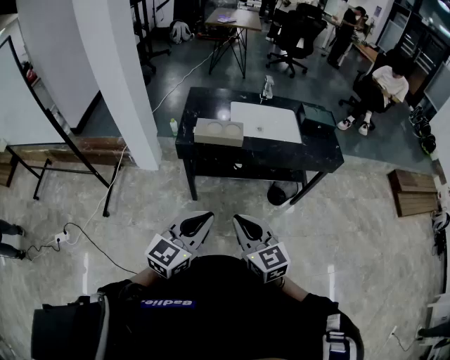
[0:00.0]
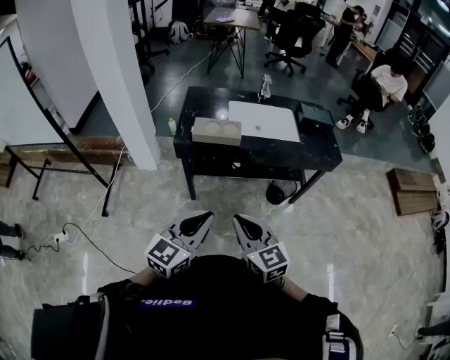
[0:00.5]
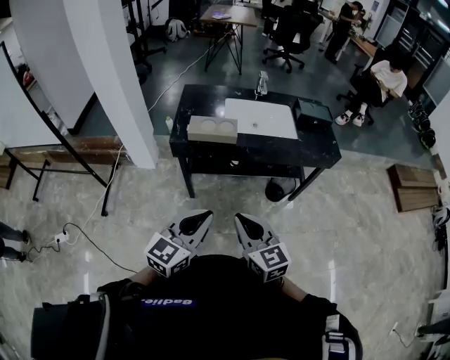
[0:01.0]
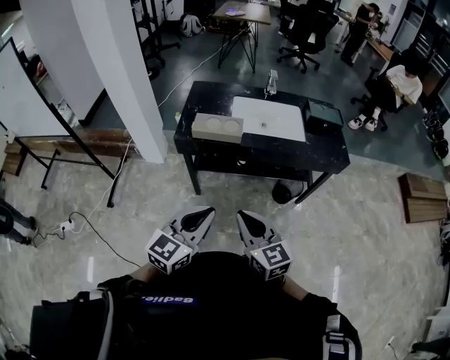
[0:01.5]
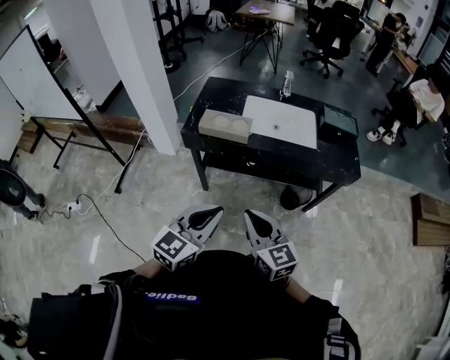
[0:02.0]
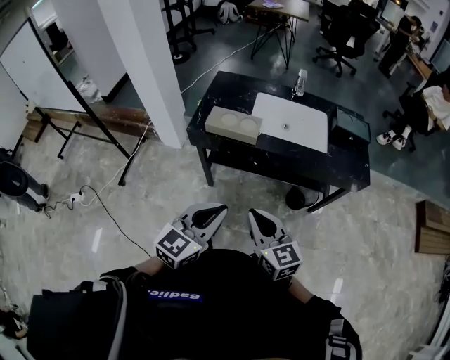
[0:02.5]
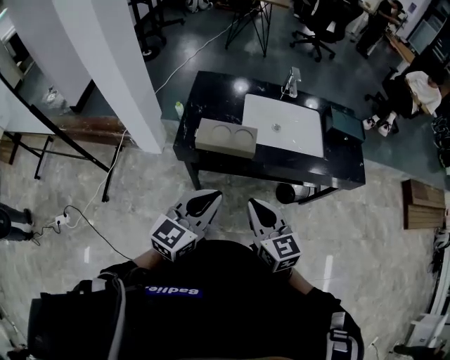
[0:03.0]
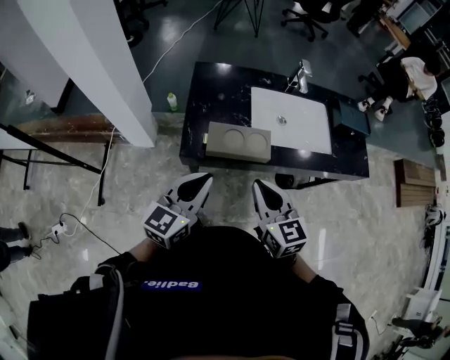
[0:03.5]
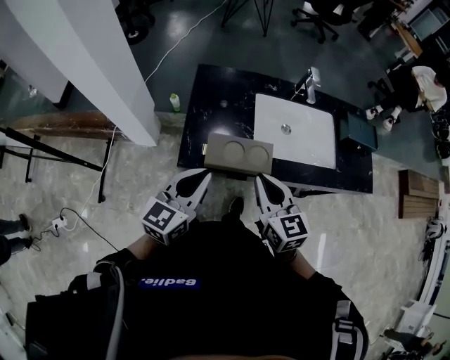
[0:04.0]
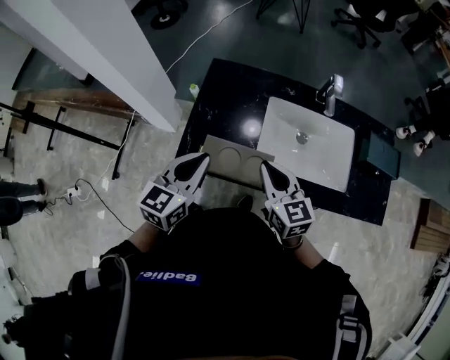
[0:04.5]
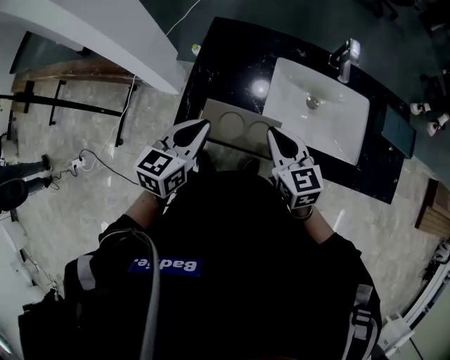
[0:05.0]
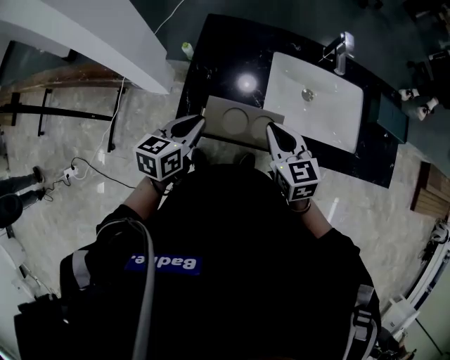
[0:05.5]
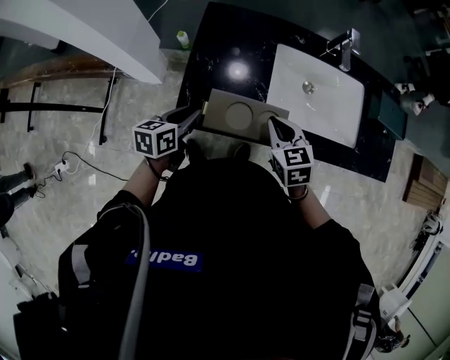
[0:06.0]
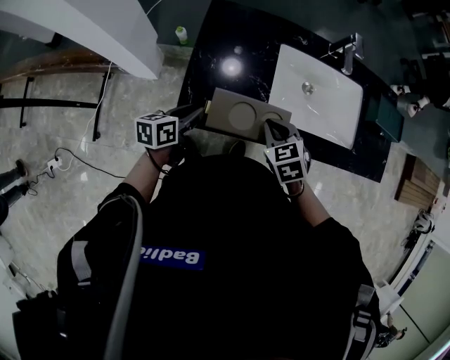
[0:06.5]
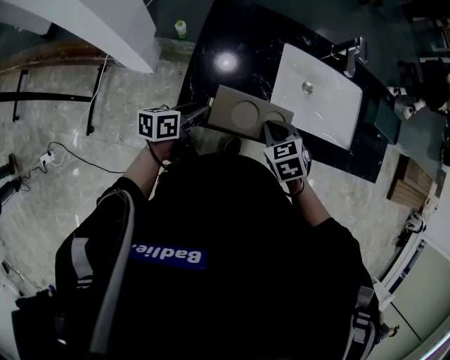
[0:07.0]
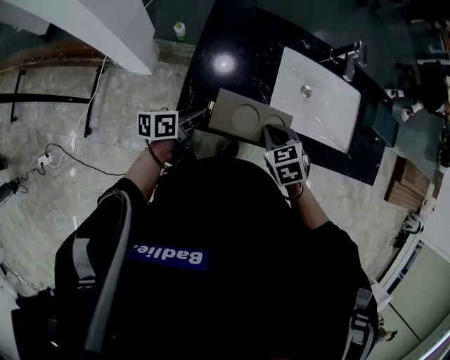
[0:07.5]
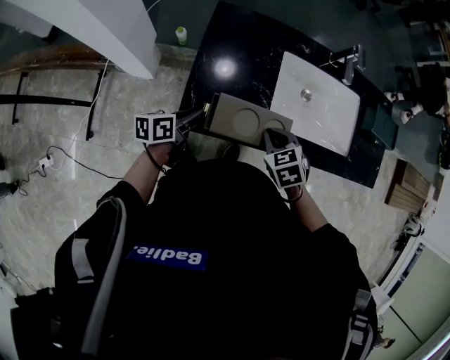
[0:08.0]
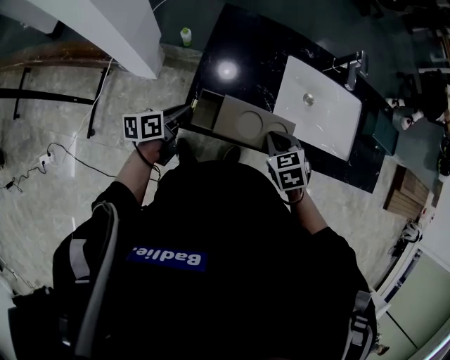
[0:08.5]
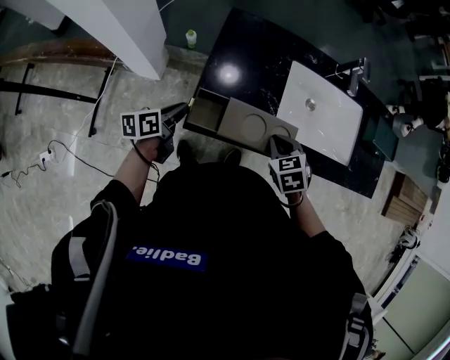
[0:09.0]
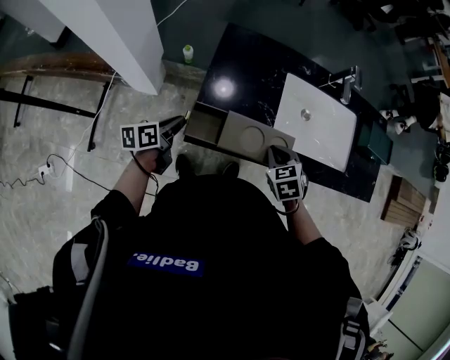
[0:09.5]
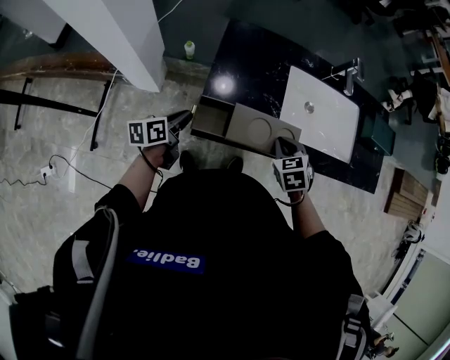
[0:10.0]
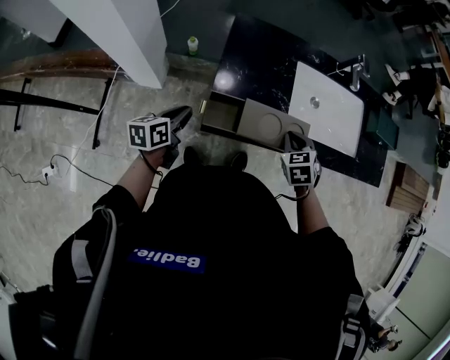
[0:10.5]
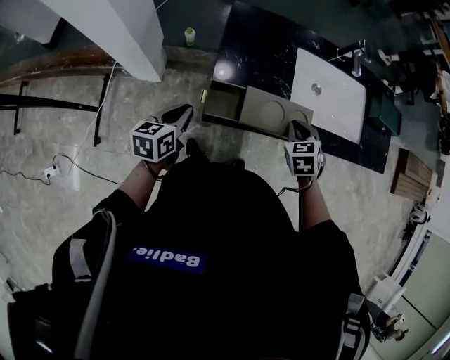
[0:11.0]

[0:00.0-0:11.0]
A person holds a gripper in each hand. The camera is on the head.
0:00.0 to 0:02.0: The right gripper goes some 10 cm to the right and forward; the left gripper heads to the right, covering roughly 10 cm.
0:02.0 to 0:03.5: The grippers both shift forward and to the left by about 35 cm.
0:03.5 to 0:05.5: Both grippers travel together forward and downward, some 20 cm. The left gripper swivels some 30 degrees.
0:05.5 to 0:07.5: The grippers both shift downward by some 10 cm. The left gripper turns by roughly 30 degrees; the right gripper tilts its fingers roughly 30 degrees downward.
0:07.5 to 0:09.0: The left gripper heads to the left, covering some 10 cm.
0:09.0 to 0:11.0: The left gripper shifts approximately 5 cm backward, and rotates approximately 20 degrees.

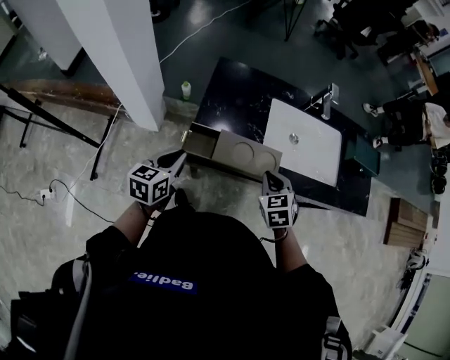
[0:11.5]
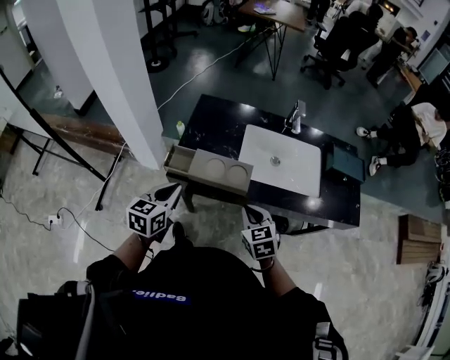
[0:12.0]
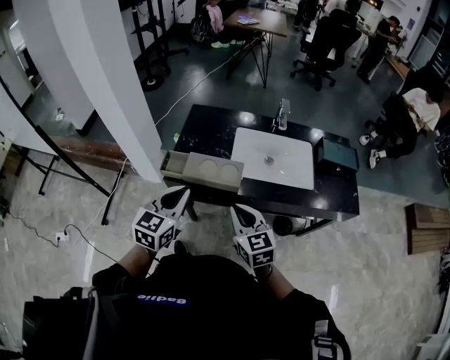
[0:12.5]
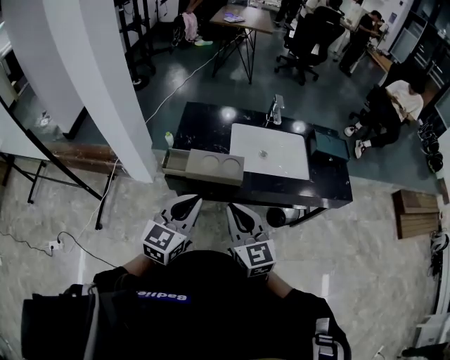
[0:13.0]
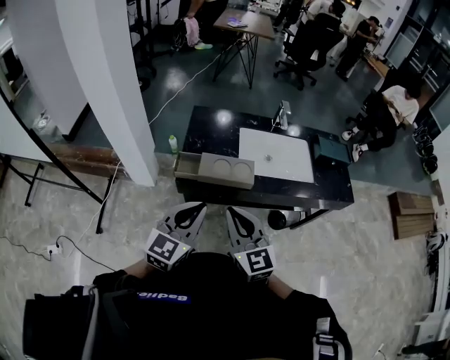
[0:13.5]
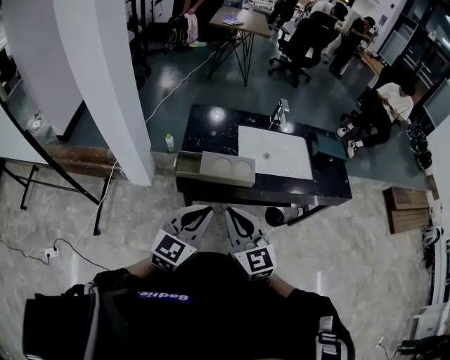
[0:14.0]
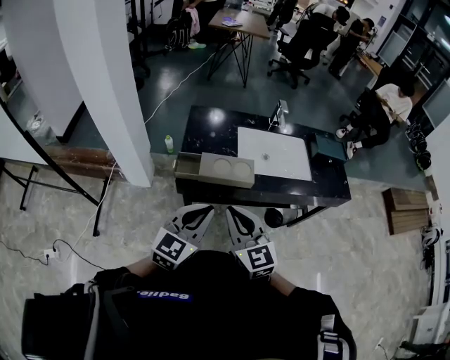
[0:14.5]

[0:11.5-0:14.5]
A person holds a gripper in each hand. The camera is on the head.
0:11.5 to 0:13.0: The right gripper goes about 25 cm backward and upward, and tips its fingers upward by roughly 40 degrees; the left gripper goes approximately 30 cm to the right, upward and backward, and rotates some 30 degrees.
0:13.0 to 0:14.5: The left gripper moves roughly 5 cm. The right gripper goes some 10 cm to the left.

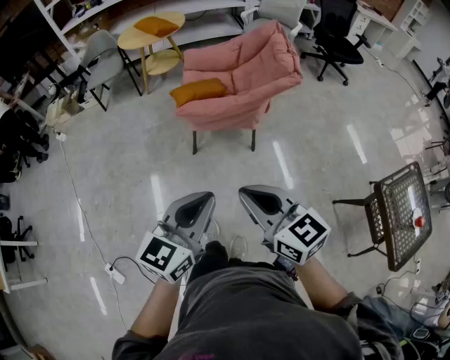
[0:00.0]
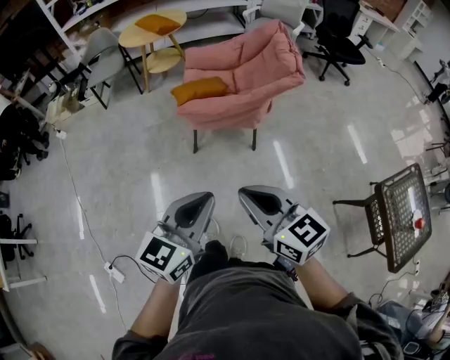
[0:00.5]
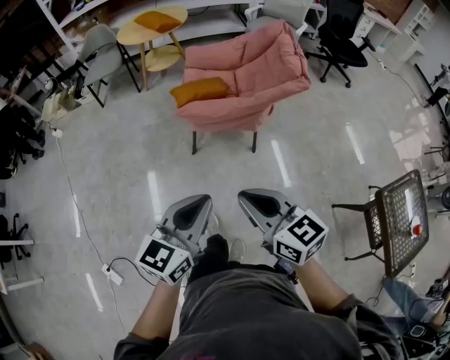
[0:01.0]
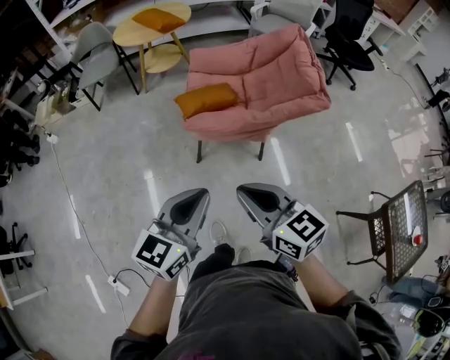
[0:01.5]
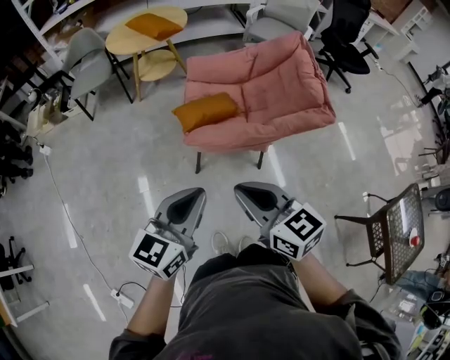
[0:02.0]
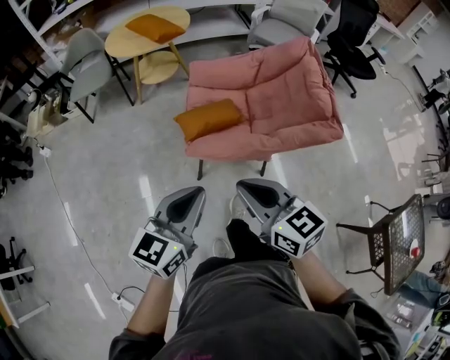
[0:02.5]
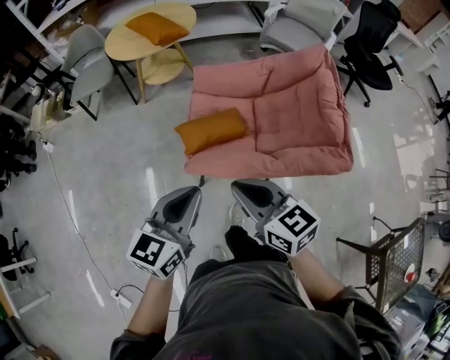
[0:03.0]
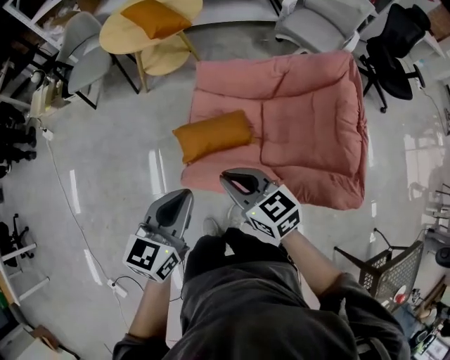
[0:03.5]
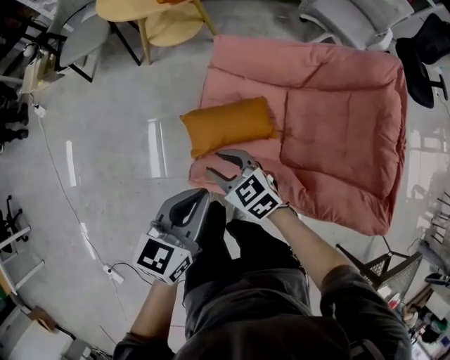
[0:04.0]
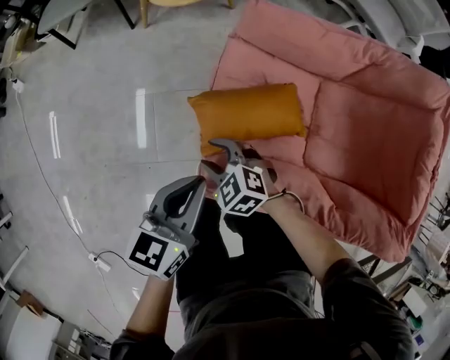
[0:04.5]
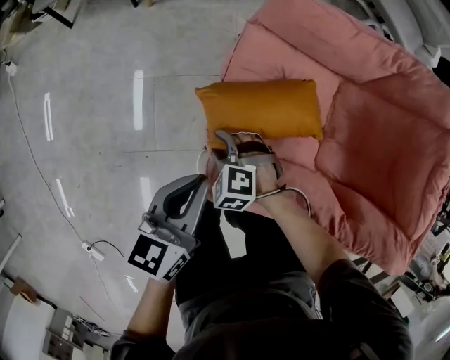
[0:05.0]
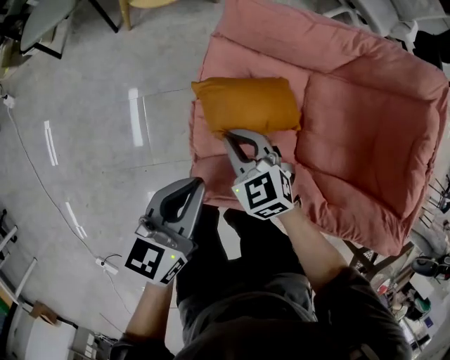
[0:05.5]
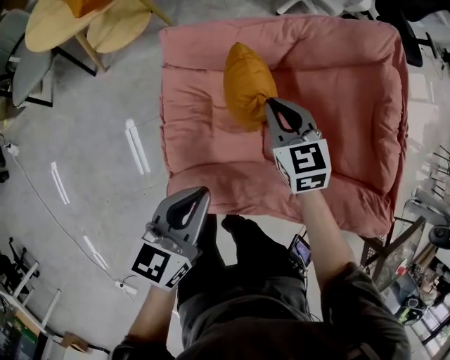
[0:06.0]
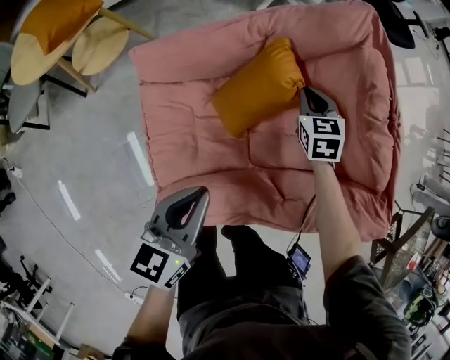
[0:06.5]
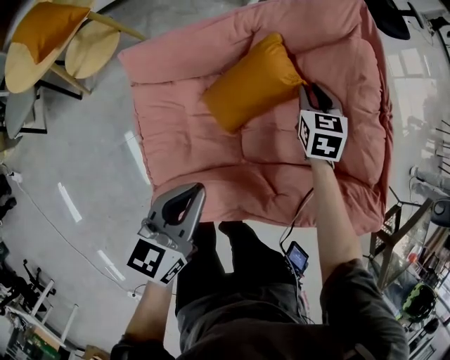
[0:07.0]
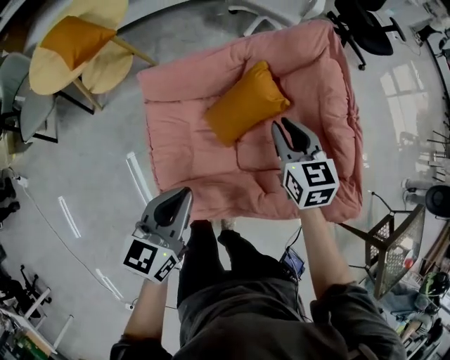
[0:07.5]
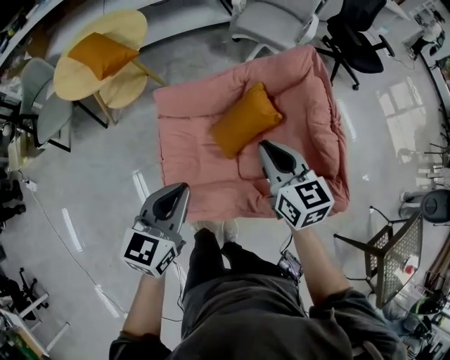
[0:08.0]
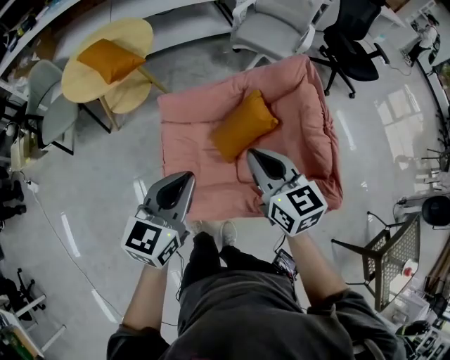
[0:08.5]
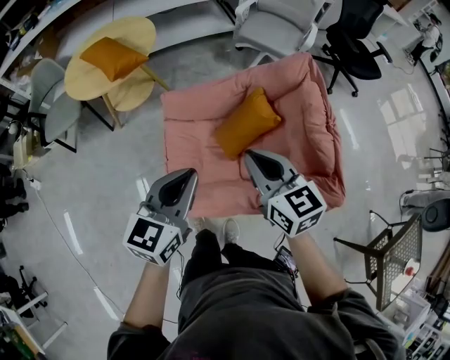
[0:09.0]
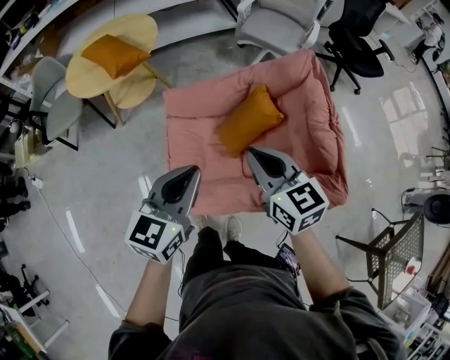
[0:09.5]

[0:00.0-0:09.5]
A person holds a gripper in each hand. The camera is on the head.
0:00.0 to 0:02.0: The grippers both shift forward and to the left by some 35 cm.
0:02.0 to 0:04.0: The grippers both shift forward and downward by approximately 50 cm. The left gripper rotates some 20 degrees. Meanwhile the right gripper turns by about 30 degrees, and opens.
0:04.0 to 0:05.5: Both grippers move downward and forward, roughly 15 cm. The right gripper closes its fingers.
0:05.5 to 0:07.5: The left gripper shifts by some 25 cm. Meanwhile the right gripper swings up and down, approximately 25 cm each way, with 2 reversals, and turns by about 50 degrees.
0:07.5 to 0:09.5: The right gripper goes approximately 25 cm upward, backward and to the left, and turns by about 20 degrees; the left gripper goes approximately 15 cm upward.

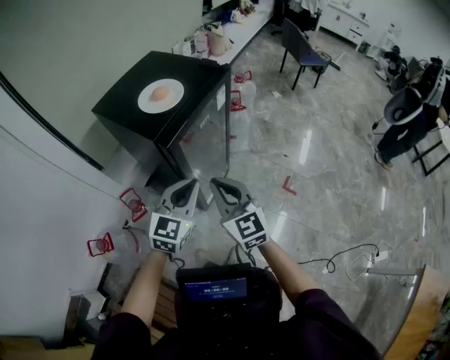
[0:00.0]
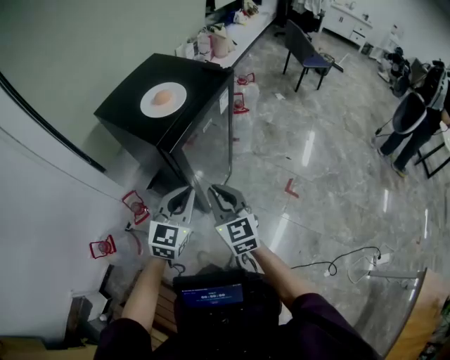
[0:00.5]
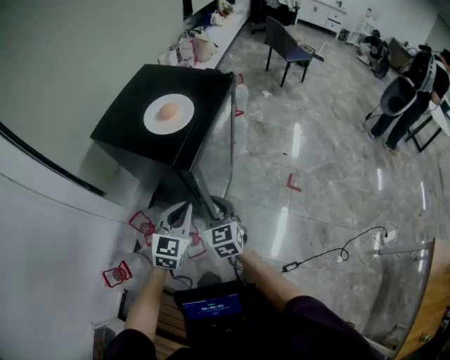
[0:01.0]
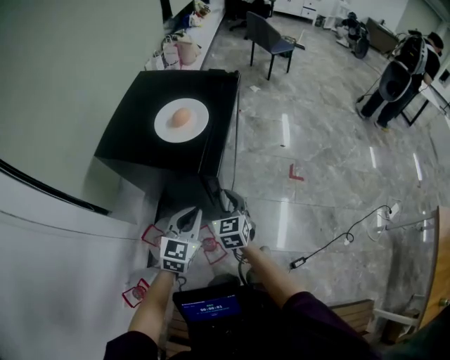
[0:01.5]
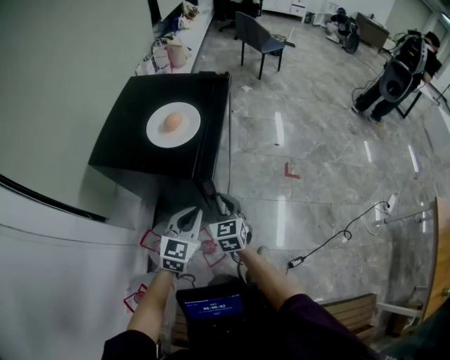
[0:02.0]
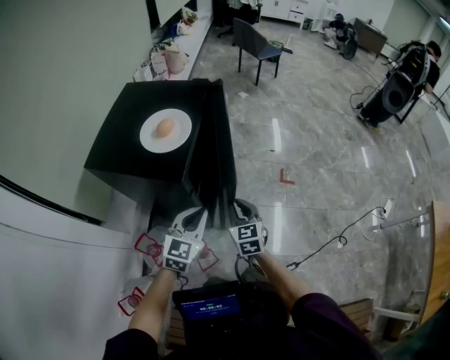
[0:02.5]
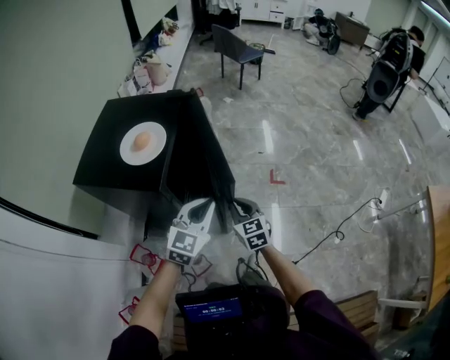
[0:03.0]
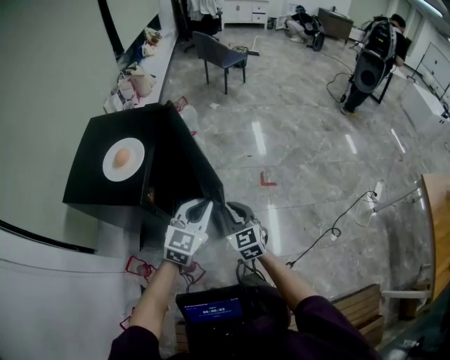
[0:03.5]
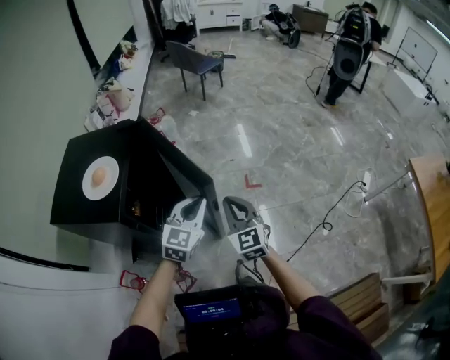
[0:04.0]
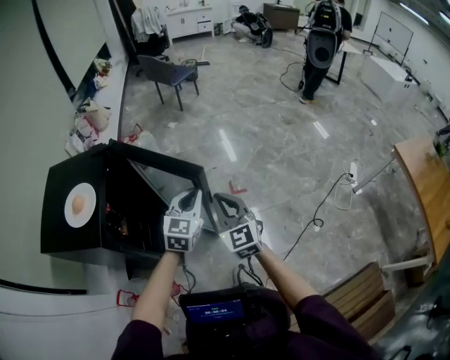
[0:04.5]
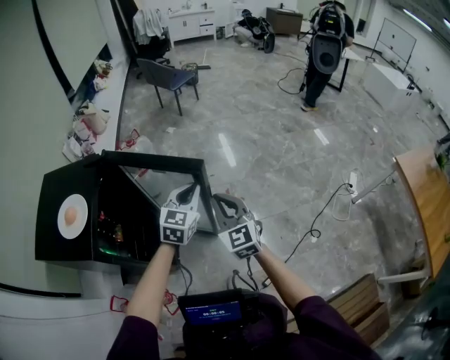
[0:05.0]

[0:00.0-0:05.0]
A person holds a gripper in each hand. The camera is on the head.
0:00.0 to 0:02.5: The left gripper moves some 10 cm, and swivels about 20 degrees. The right gripper travels downward by some 15 cm, and rotates roughly 40 degrees.
0:02.5 to 0:05.0: The right gripper goes some 30 cm to the right, upward and forward, and changes its angle by some 20 degrees; the left gripper shifts approximately 35 cm to the right and forward.
